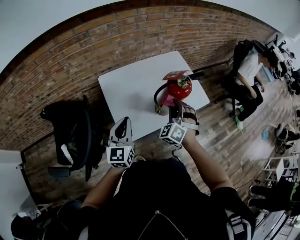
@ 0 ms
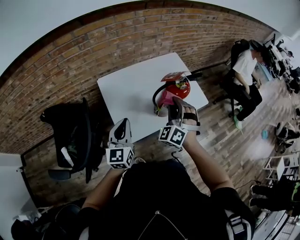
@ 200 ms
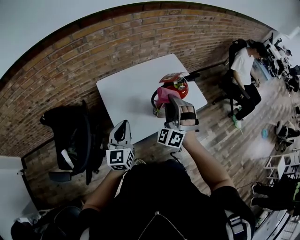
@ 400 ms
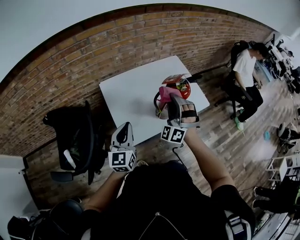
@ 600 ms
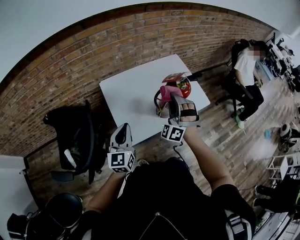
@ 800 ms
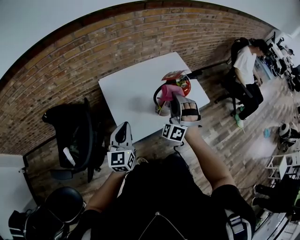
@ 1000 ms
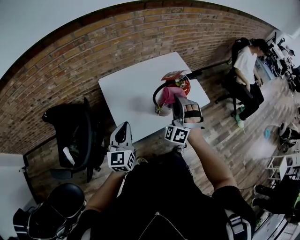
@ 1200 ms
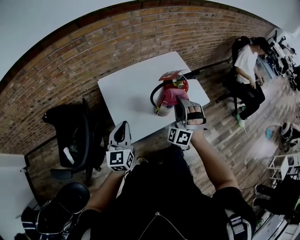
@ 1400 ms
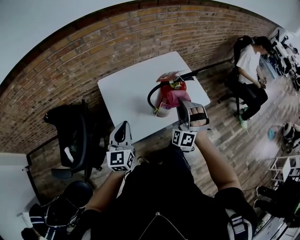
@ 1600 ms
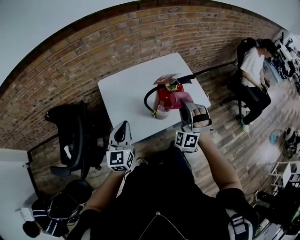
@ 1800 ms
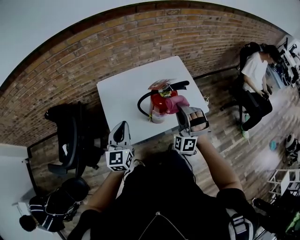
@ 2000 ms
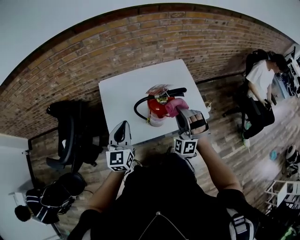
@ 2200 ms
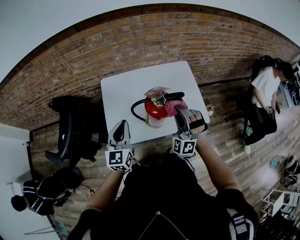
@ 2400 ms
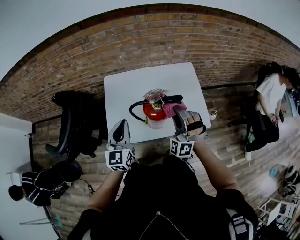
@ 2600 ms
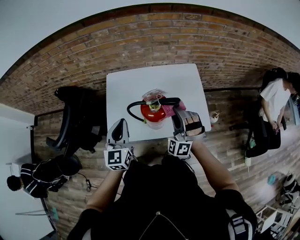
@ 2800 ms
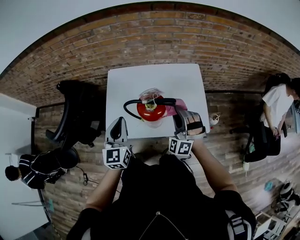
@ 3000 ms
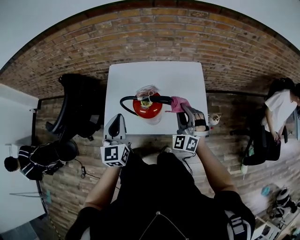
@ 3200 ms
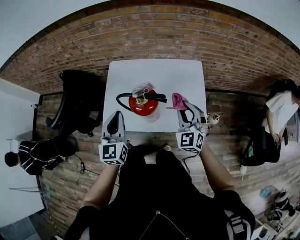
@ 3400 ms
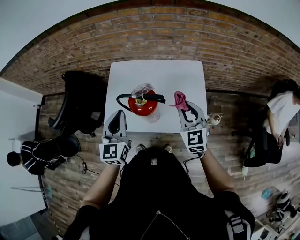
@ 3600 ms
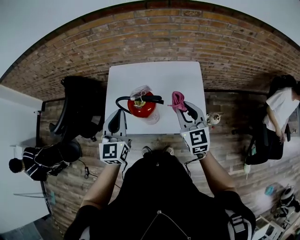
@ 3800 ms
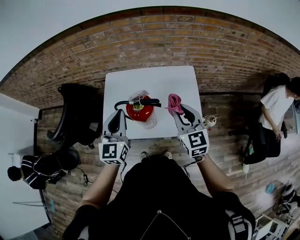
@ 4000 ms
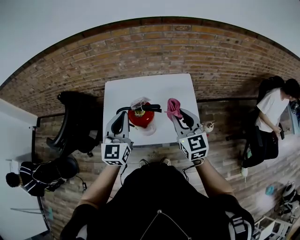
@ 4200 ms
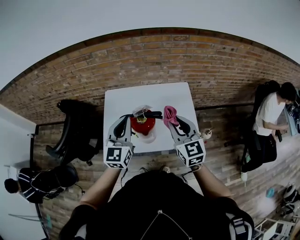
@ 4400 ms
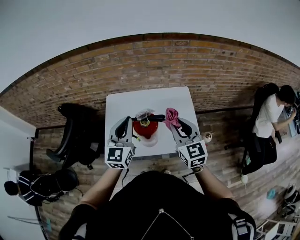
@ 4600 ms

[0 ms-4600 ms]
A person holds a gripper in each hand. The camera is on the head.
1600 ms to 3000 ms: The left gripper ends up some 15 cm from where it was, and turns by about 30 degrees.
3000 ms to 4600 ms: The left gripper shifts approximately 10 cm upward.

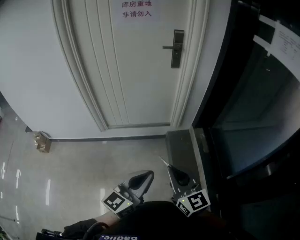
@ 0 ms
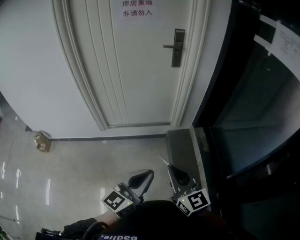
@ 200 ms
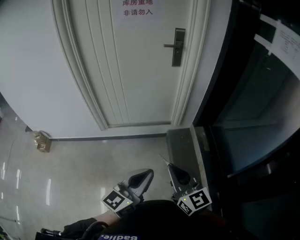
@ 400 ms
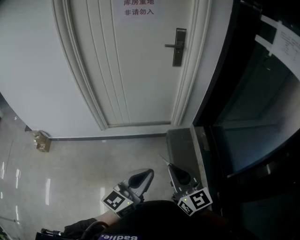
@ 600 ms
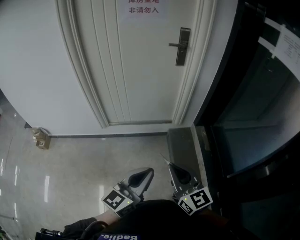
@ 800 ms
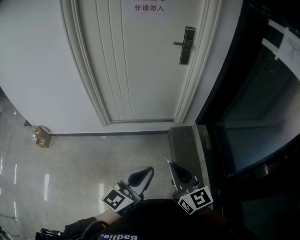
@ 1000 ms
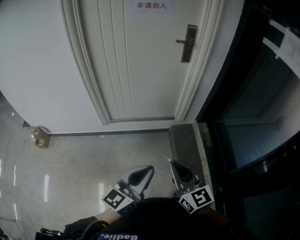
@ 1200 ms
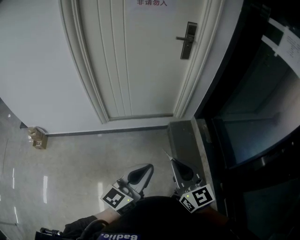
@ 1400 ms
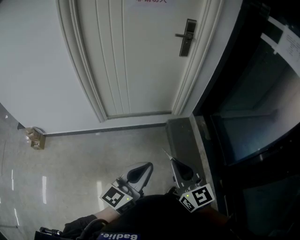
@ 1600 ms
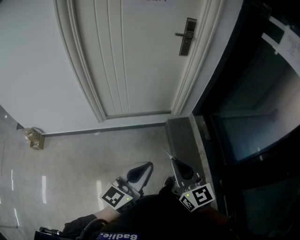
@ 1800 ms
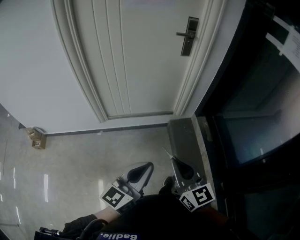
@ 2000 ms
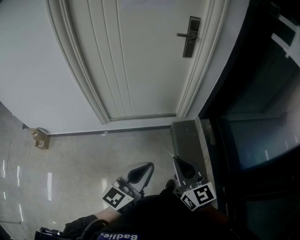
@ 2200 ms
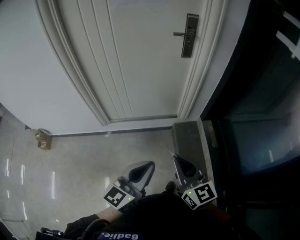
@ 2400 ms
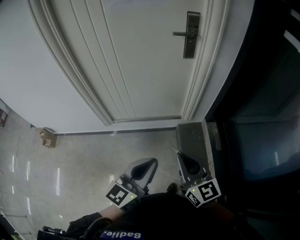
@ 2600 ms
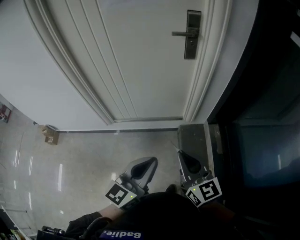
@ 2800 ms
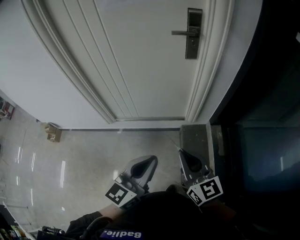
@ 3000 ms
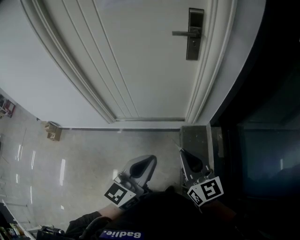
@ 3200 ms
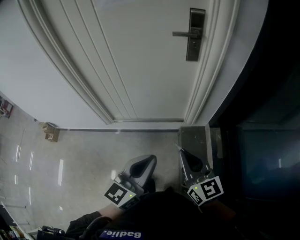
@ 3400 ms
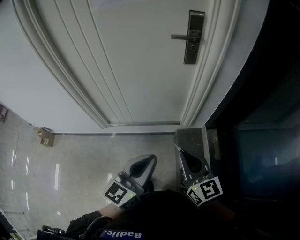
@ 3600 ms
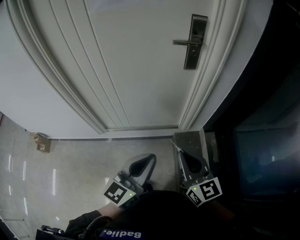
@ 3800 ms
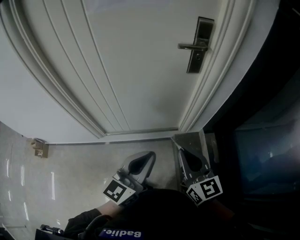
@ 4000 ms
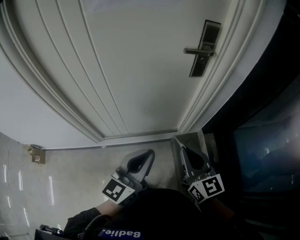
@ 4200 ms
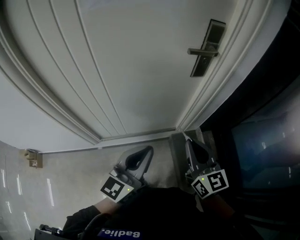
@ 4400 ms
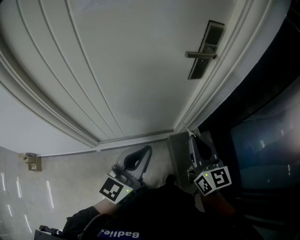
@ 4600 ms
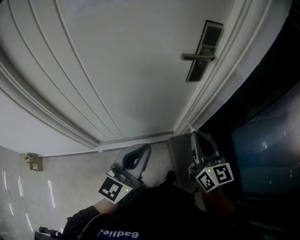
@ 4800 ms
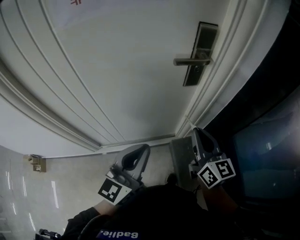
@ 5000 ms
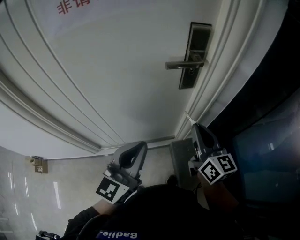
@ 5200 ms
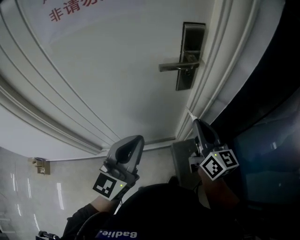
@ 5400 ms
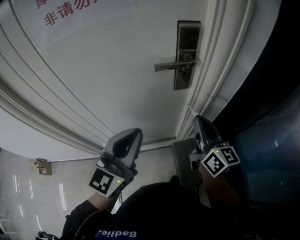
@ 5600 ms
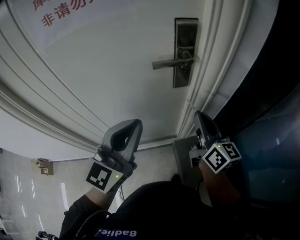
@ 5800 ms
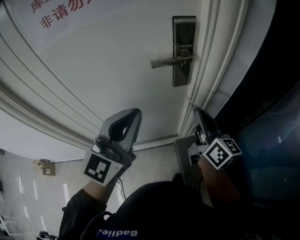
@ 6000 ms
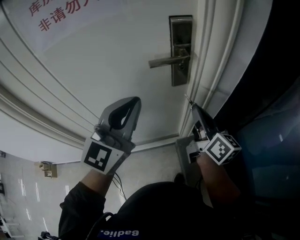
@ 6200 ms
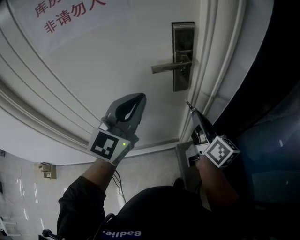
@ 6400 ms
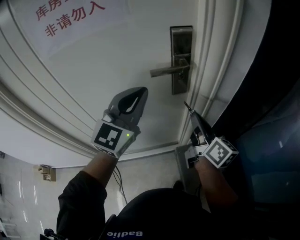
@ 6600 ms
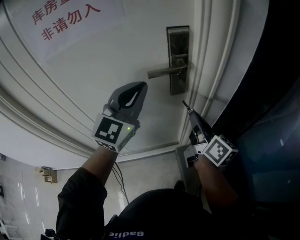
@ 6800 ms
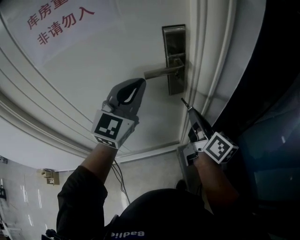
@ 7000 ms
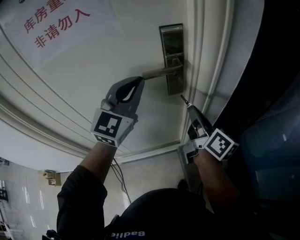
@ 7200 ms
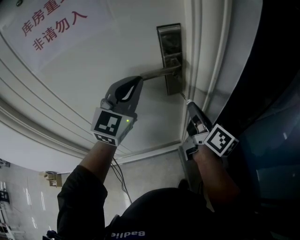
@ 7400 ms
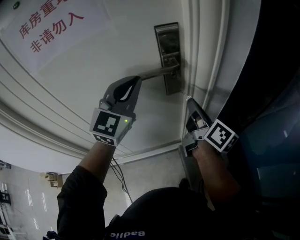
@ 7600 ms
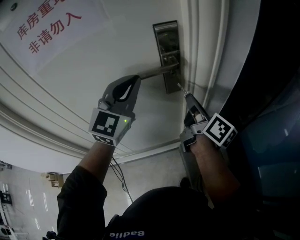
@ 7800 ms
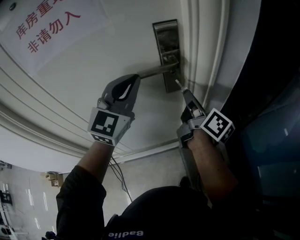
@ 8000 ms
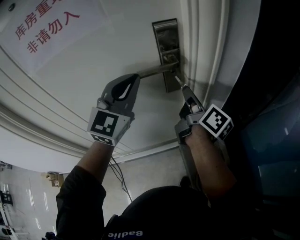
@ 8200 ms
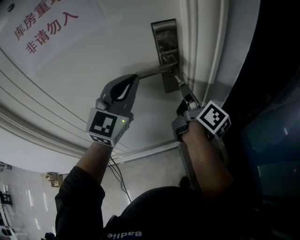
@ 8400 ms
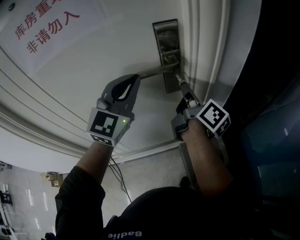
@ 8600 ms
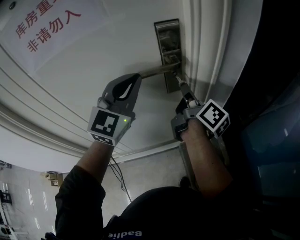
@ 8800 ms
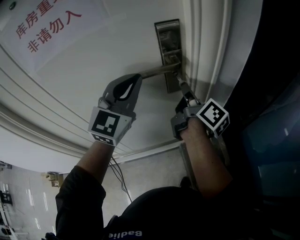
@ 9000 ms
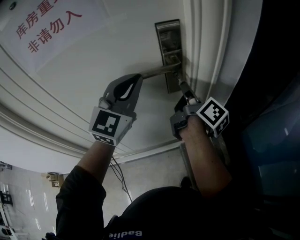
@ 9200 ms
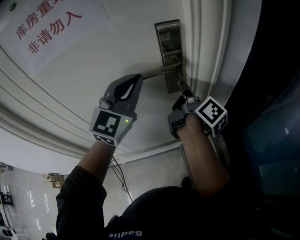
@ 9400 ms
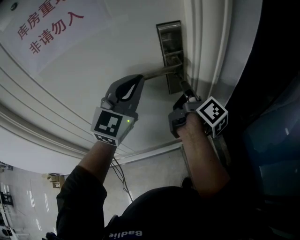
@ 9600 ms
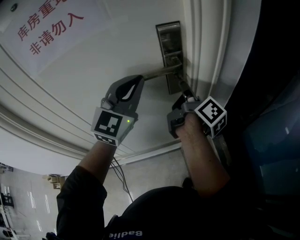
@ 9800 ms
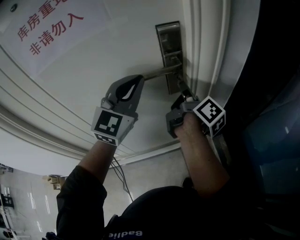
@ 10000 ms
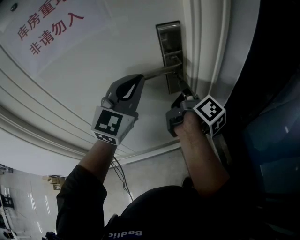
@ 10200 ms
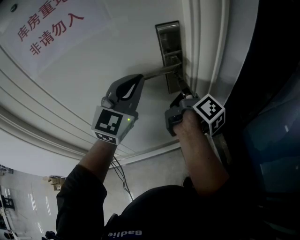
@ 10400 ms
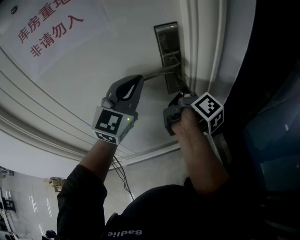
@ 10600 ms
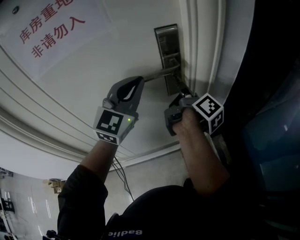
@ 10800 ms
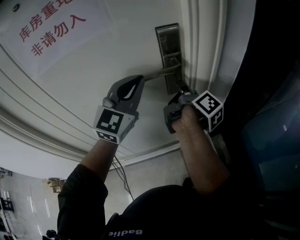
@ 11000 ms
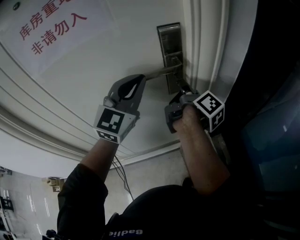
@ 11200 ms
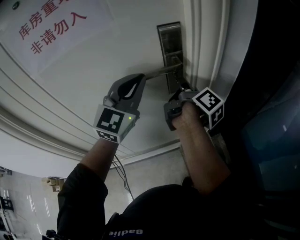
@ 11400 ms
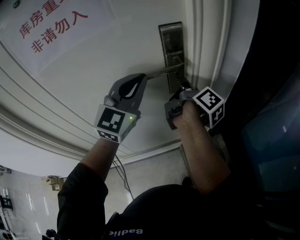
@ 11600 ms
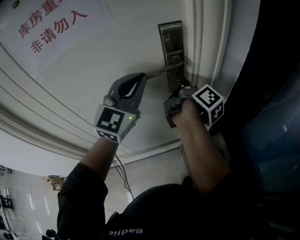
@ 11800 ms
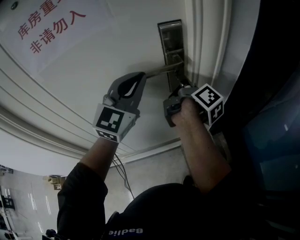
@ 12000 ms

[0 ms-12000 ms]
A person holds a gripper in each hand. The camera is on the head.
0 ms to 1600 ms: The grippers both shift to the left by approximately 10 cm.
1600 ms to 3000 ms: The grippers both shift forward and to the right by approximately 25 cm.
3000 ms to 4400 ms: The left gripper heads forward and to the left, covering about 25 cm. The right gripper heads forward, covering approximately 20 cm.
4400 ms to 6000 ms: The left gripper travels forward, upward and to the right by roughly 20 cm, and turns by about 20 degrees, while the right gripper shifts some 20 cm forward and to the right, and turns by approximately 30 degrees.
6000 ms to 7600 ms: The right gripper moves forward, roughly 5 cm, and changes its angle by about 20 degrees; the left gripper goes about 15 cm forward.
7600 ms to 9000 ms: The right gripper travels forward by some 5 cm.
9000 ms to 12000 ms: The grippers stay close to where they were, moving slightly.

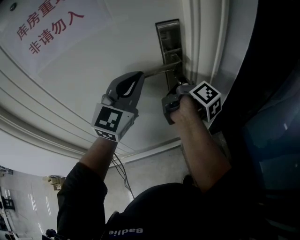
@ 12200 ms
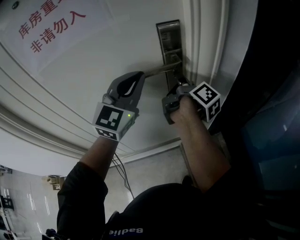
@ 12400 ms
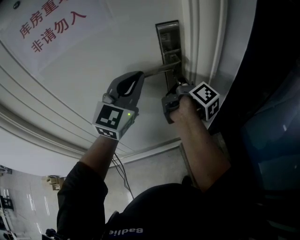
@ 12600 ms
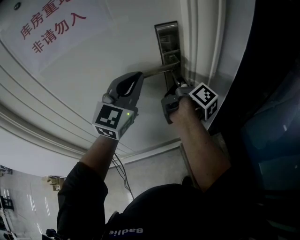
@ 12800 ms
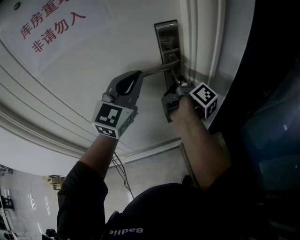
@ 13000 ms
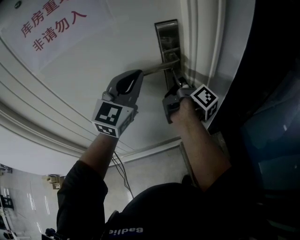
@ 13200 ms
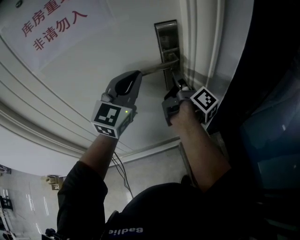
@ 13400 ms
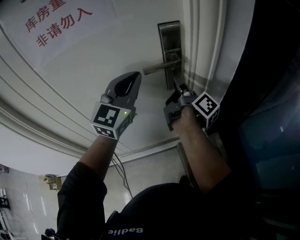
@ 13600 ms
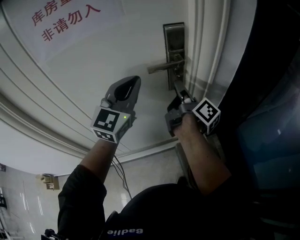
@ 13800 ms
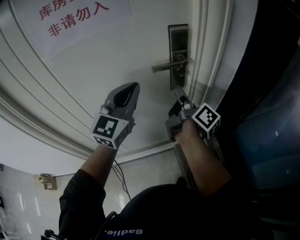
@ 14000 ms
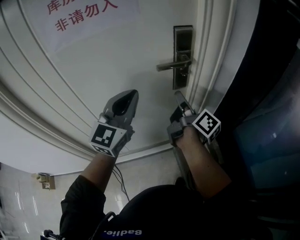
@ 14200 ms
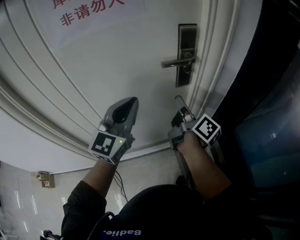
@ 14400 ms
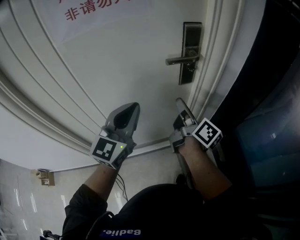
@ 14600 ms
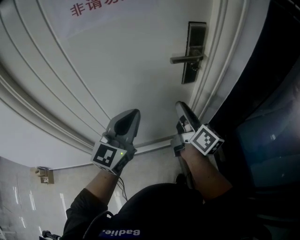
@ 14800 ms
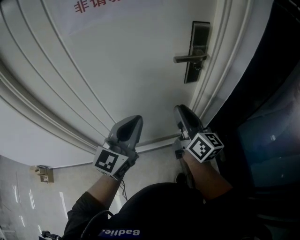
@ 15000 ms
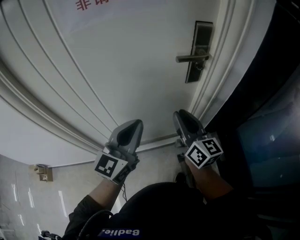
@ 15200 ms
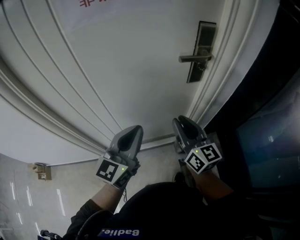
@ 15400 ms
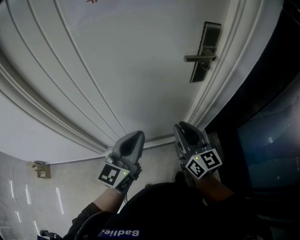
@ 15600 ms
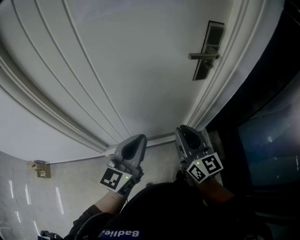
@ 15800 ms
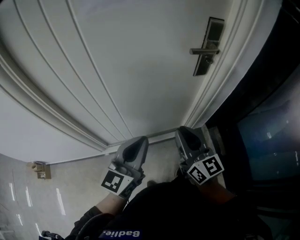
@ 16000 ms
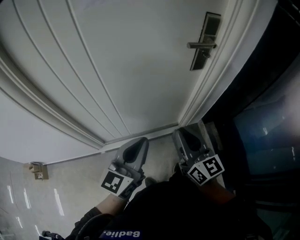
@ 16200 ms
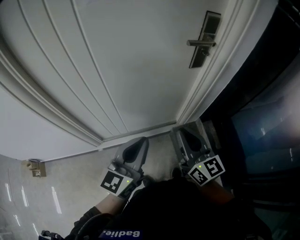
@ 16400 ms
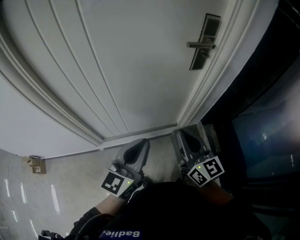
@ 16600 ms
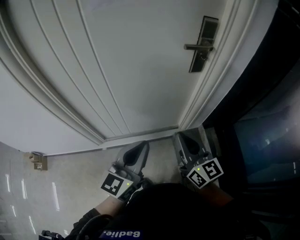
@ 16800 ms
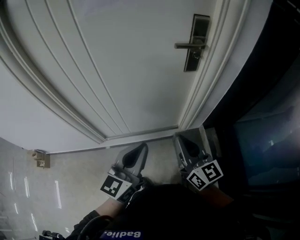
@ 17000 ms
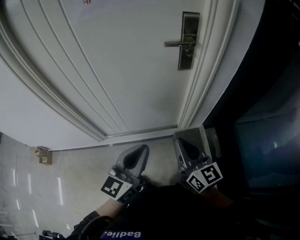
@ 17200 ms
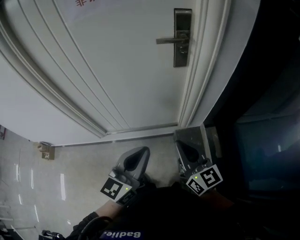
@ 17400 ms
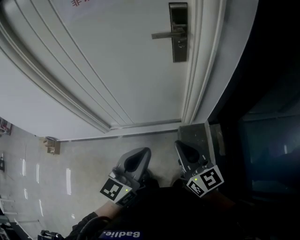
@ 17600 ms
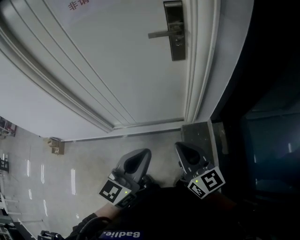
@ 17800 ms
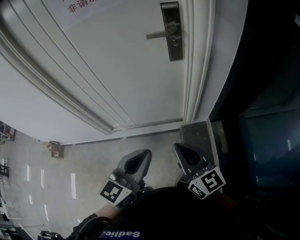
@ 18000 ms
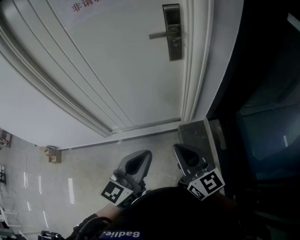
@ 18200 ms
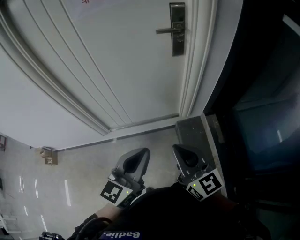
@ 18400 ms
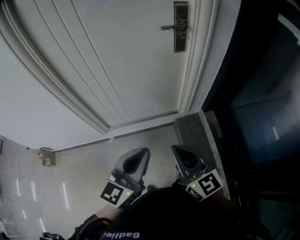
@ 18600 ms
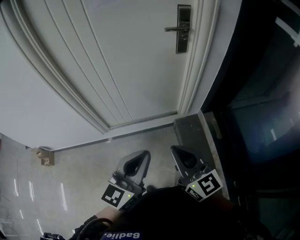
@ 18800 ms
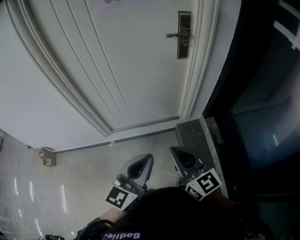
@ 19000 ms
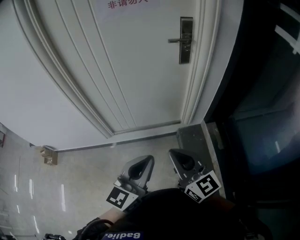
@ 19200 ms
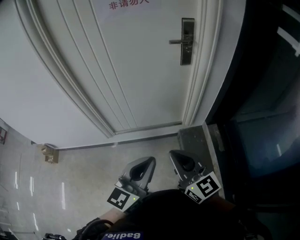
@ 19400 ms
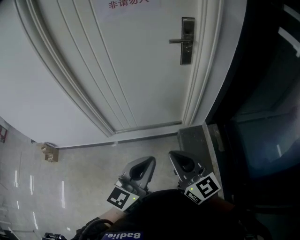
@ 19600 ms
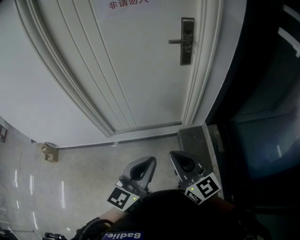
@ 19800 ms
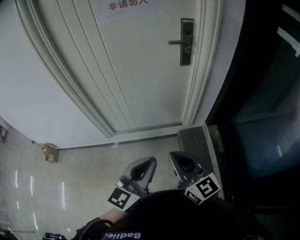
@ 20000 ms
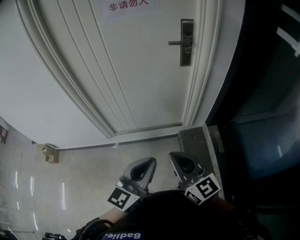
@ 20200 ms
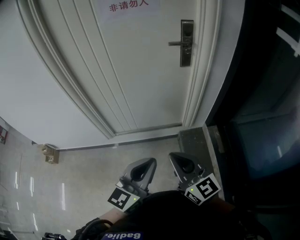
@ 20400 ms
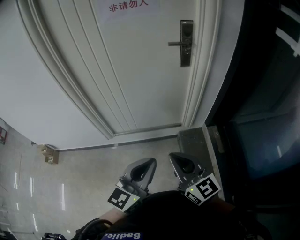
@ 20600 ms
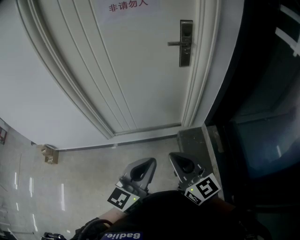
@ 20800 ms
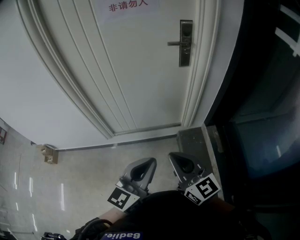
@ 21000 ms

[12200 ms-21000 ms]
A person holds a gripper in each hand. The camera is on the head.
12200 ms to 13600 ms: The right gripper opens up.
13600 ms to 15200 ms: The left gripper travels backward, downward and to the left by roughly 20 cm, and changes its angle by some 20 degrees; the right gripper moves backward and to the left, about 20 cm, and rotates around the line of its fingers by roughly 60 degrees, counterclockwise from behind.
15200 ms to 16600 ms: The right gripper shifts some 15 cm backward, and closes up. Meanwhile the left gripper is displaced backward and downward by approximately 15 cm.
16600 ms to 18000 ms: Both grippers travel together to the right and backward, approximately 20 cm.
18000 ms to 19600 ms: The grippers both shift backward and to the left by about 15 cm.
19600 ms to 21000 ms: Both grippers stay about where they are.
